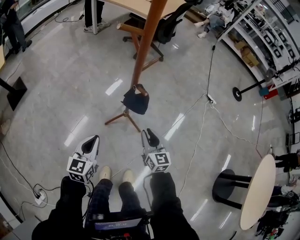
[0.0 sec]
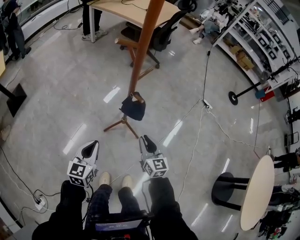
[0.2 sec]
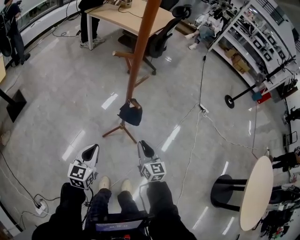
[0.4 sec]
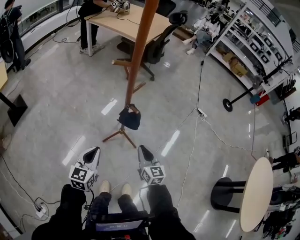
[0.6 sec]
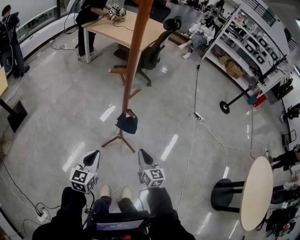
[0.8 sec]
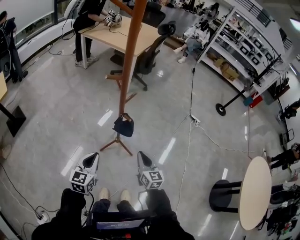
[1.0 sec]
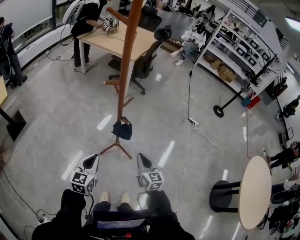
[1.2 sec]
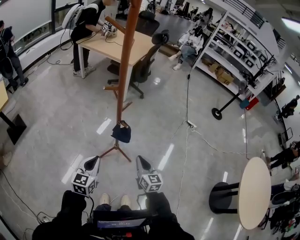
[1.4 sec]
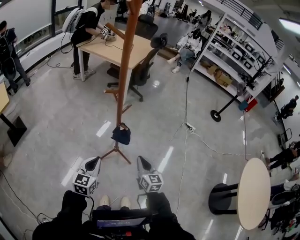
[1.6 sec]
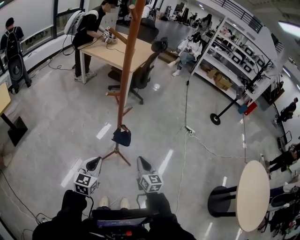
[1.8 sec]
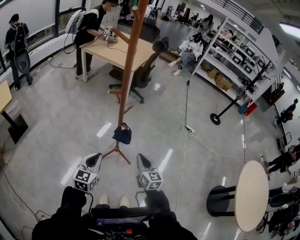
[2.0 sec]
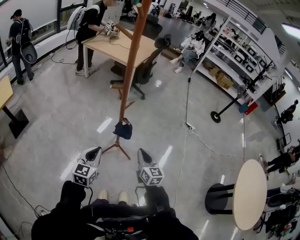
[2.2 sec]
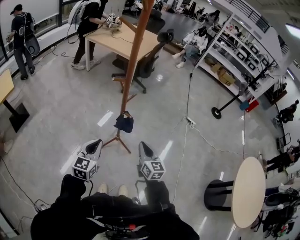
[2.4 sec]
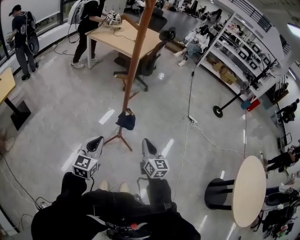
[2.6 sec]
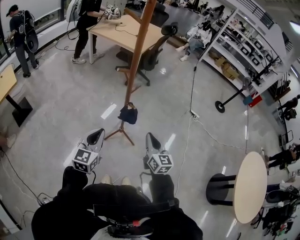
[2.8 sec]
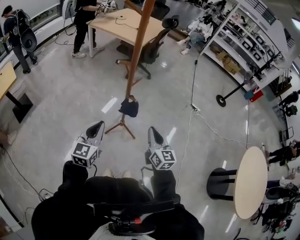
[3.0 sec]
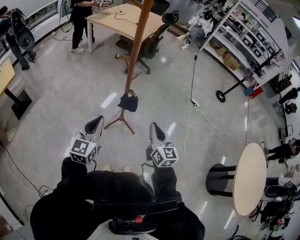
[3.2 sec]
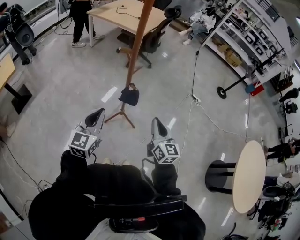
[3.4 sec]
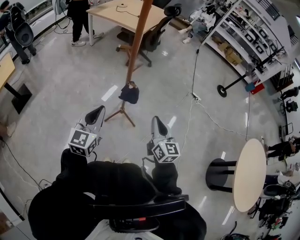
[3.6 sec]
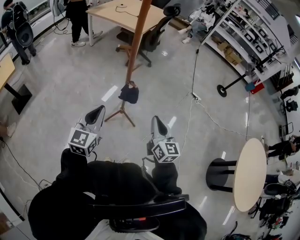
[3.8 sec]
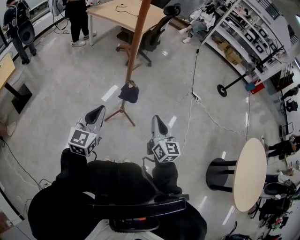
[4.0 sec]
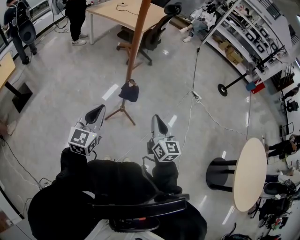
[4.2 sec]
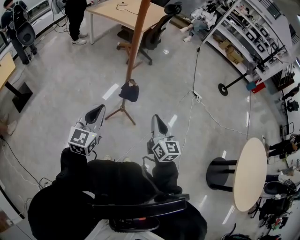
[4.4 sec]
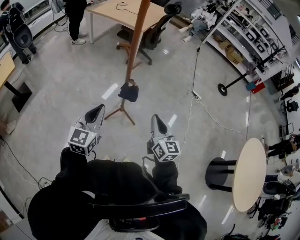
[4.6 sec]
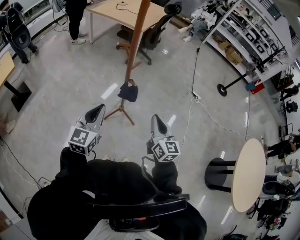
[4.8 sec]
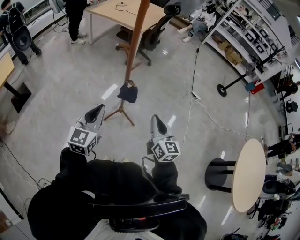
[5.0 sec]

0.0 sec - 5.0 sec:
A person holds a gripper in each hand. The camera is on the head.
0.0 sec - 1.6 sec: The grippers both shift upward by approximately 15 cm. The right gripper closes up.
1.6 sec - 3.4 sec: The left gripper travels upward by roughly 10 cm. The right gripper travels upward and backward by some 15 cm.
3.4 sec - 5.0 sec: The two grippers keep their place.

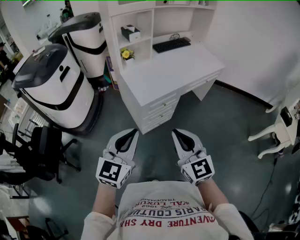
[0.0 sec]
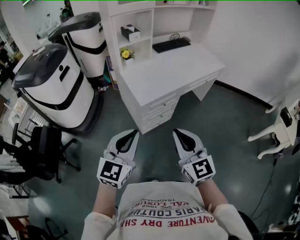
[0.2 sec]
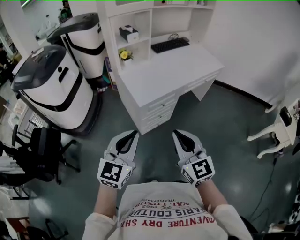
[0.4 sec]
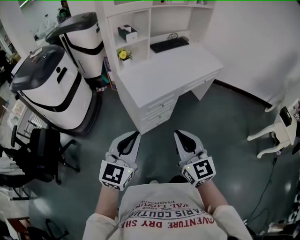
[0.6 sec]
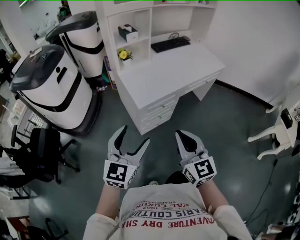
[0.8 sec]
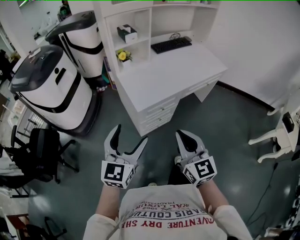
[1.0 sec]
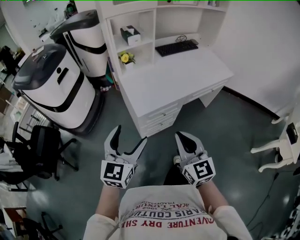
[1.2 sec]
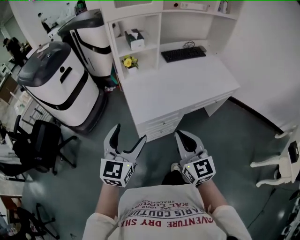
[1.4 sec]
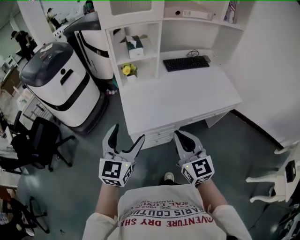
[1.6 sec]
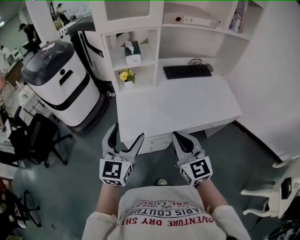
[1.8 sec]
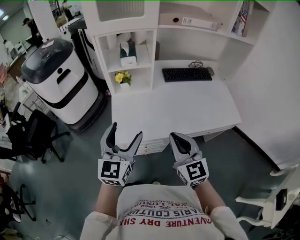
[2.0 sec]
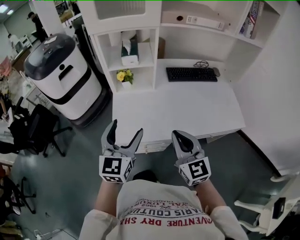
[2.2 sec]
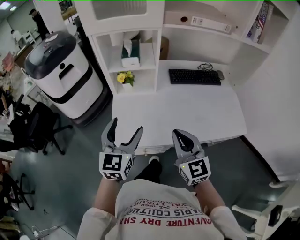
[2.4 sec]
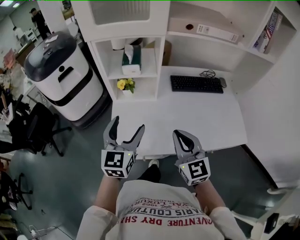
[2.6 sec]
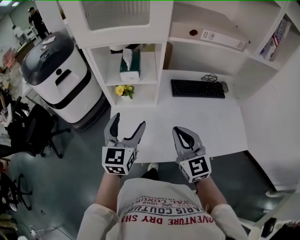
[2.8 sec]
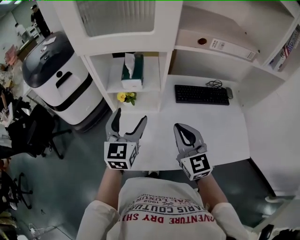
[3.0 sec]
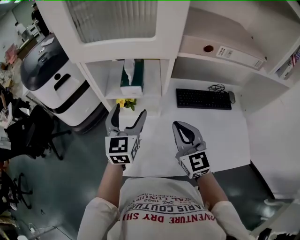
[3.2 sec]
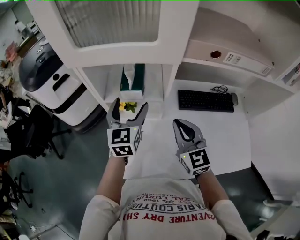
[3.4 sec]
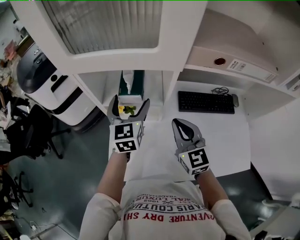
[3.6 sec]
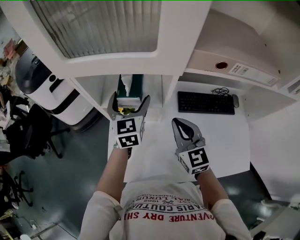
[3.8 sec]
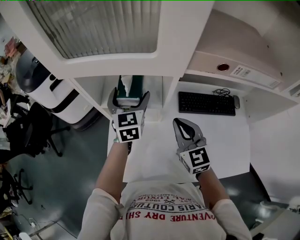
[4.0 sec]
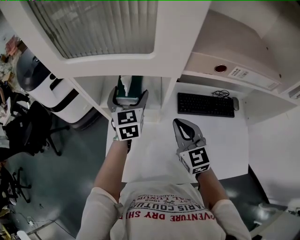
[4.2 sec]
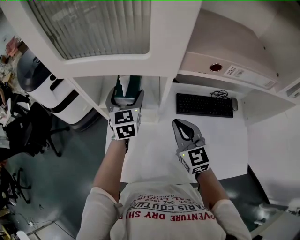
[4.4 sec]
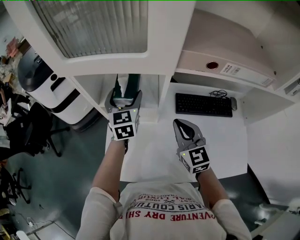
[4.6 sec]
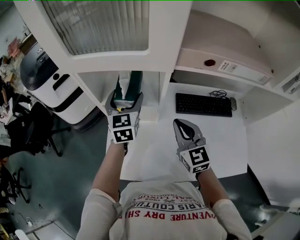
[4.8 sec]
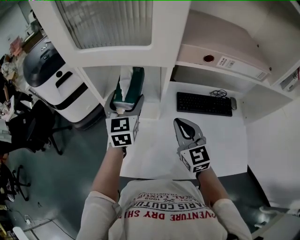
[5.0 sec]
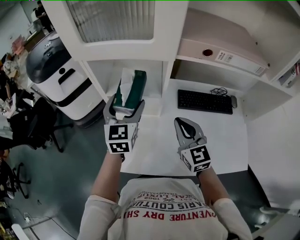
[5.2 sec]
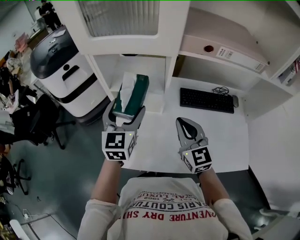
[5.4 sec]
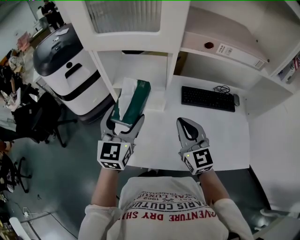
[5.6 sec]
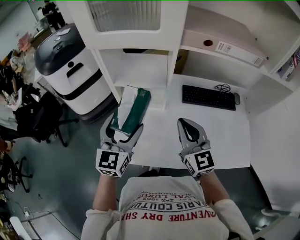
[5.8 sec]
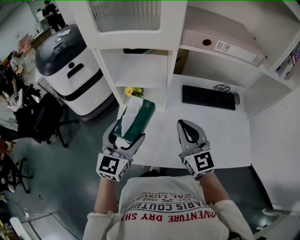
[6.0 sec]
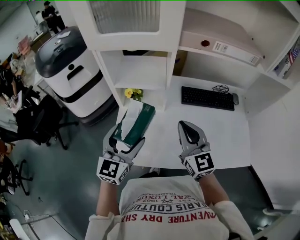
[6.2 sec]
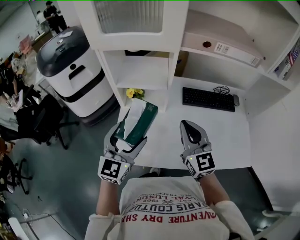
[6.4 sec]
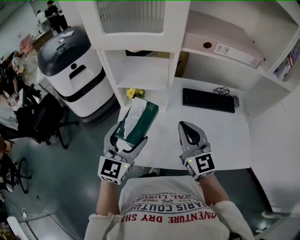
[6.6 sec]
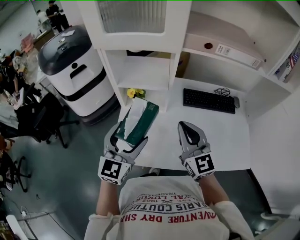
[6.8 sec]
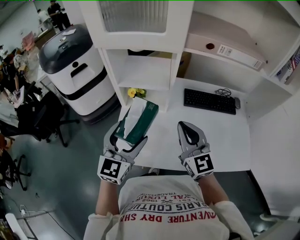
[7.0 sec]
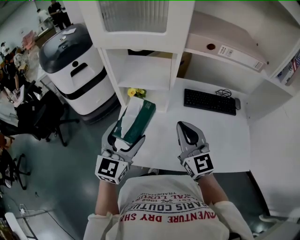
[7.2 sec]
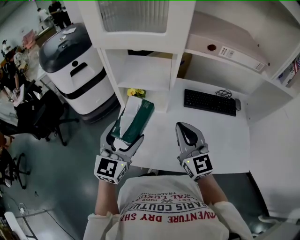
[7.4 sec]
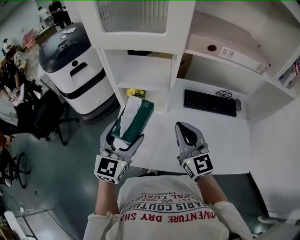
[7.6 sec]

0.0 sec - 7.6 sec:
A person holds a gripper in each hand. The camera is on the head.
0.0 sec - 1.6 sec: Both grippers move forward and to the right, approximately 25 cm. The left gripper rotates some 20 degrees, and opens its fingers.
1.6 sec - 3.0 sec: The left gripper moves forward and to the right, roughly 35 cm, while the right gripper is displaced forward by roughly 30 cm.
3.0 sec - 4.6 sec: The left gripper heads forward, covering about 20 cm, while the right gripper shifts some 10 cm forward.
4.6 sec - 6.0 sec: The left gripper goes some 25 cm backward, and turns by some 20 degrees. The right gripper moves backward, approximately 10 cm.
6.0 sec - 7.6 sec: The grippers move only a little.

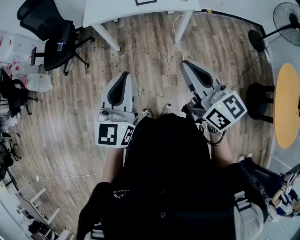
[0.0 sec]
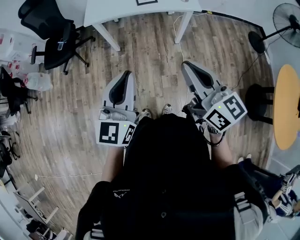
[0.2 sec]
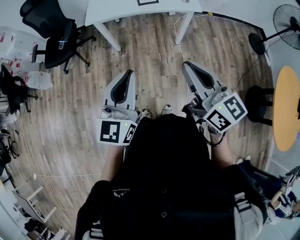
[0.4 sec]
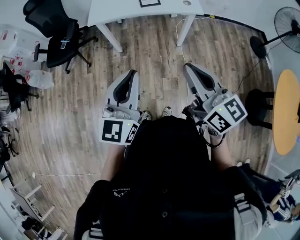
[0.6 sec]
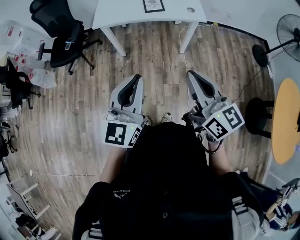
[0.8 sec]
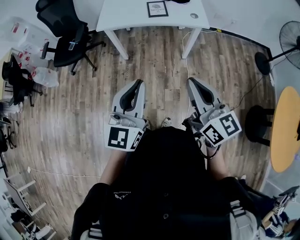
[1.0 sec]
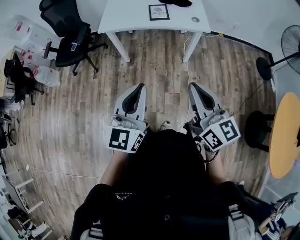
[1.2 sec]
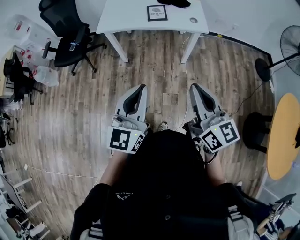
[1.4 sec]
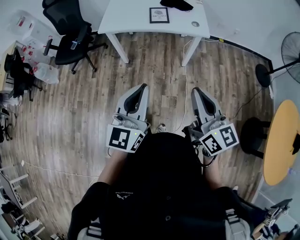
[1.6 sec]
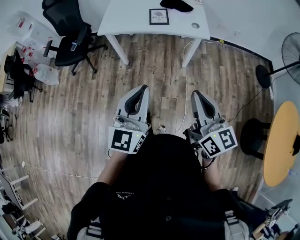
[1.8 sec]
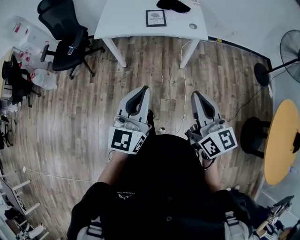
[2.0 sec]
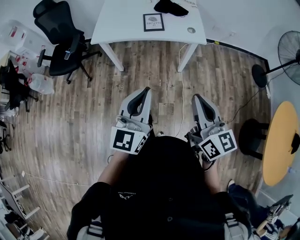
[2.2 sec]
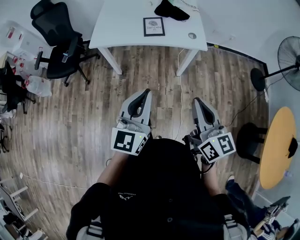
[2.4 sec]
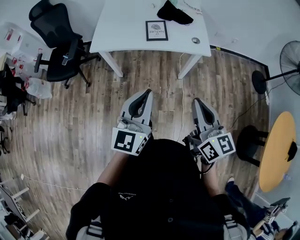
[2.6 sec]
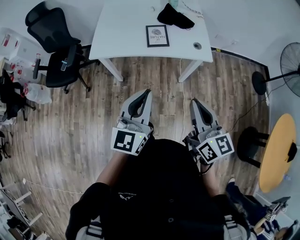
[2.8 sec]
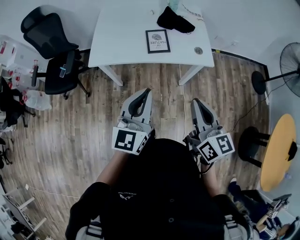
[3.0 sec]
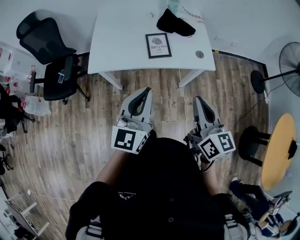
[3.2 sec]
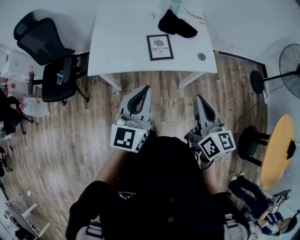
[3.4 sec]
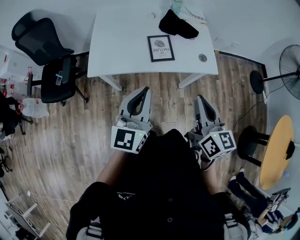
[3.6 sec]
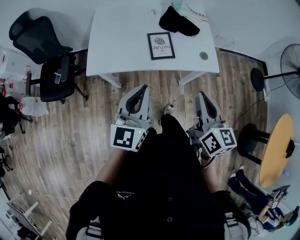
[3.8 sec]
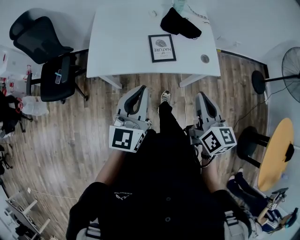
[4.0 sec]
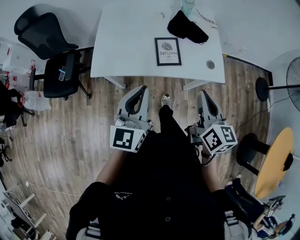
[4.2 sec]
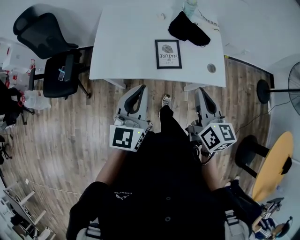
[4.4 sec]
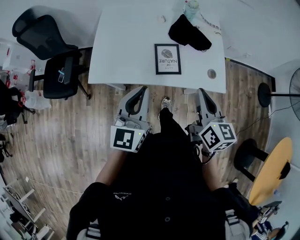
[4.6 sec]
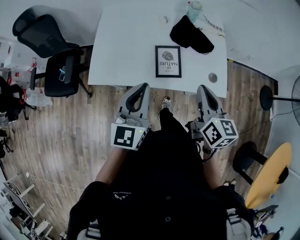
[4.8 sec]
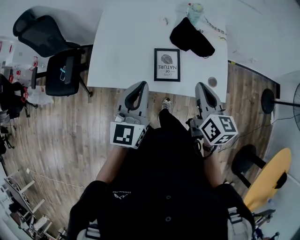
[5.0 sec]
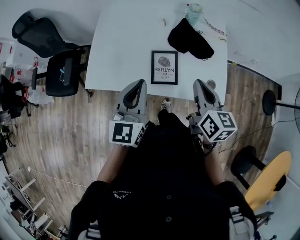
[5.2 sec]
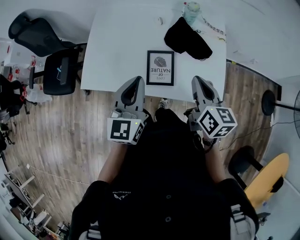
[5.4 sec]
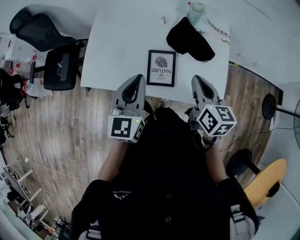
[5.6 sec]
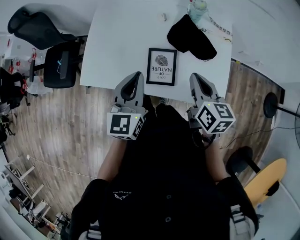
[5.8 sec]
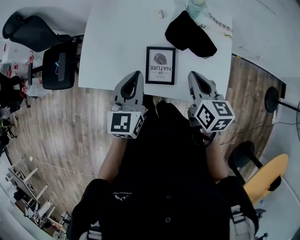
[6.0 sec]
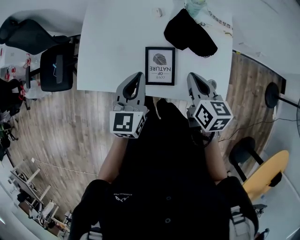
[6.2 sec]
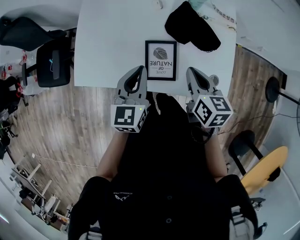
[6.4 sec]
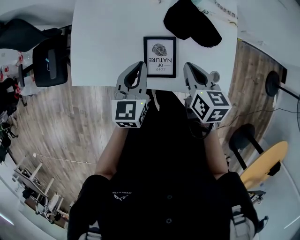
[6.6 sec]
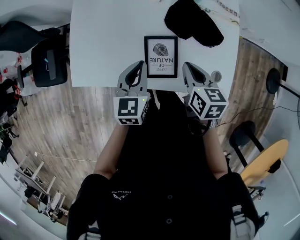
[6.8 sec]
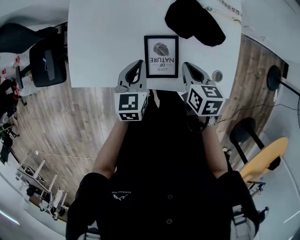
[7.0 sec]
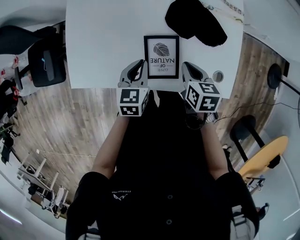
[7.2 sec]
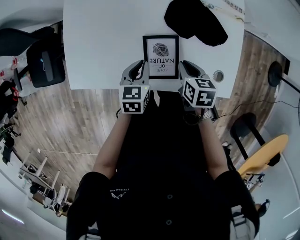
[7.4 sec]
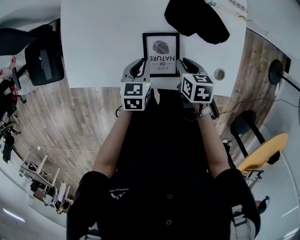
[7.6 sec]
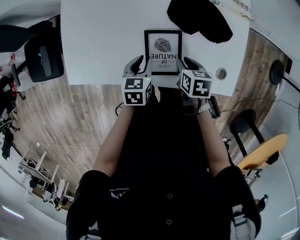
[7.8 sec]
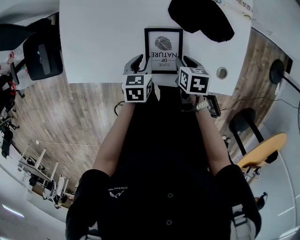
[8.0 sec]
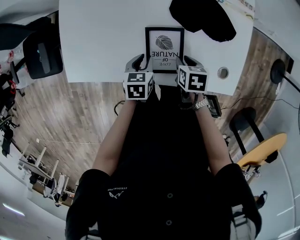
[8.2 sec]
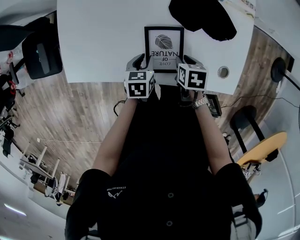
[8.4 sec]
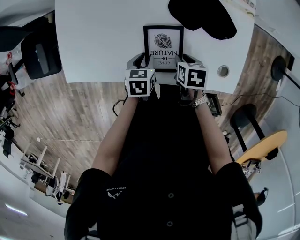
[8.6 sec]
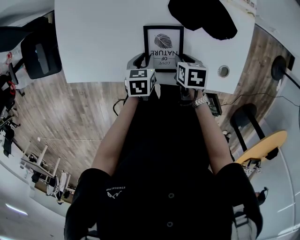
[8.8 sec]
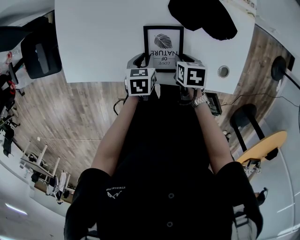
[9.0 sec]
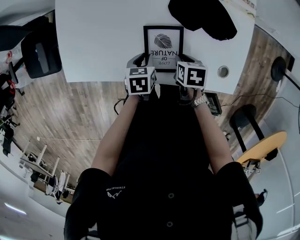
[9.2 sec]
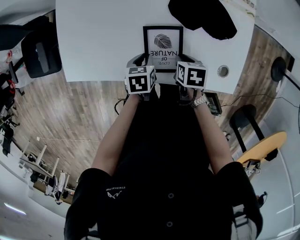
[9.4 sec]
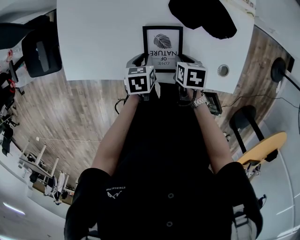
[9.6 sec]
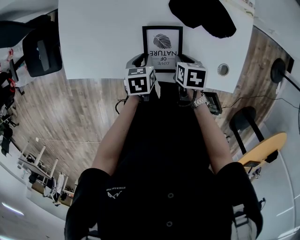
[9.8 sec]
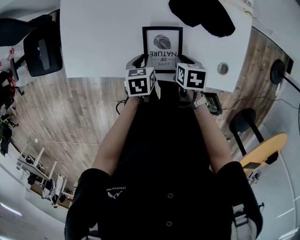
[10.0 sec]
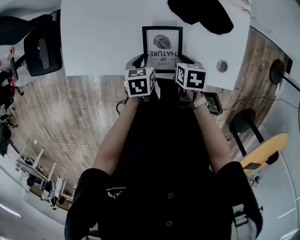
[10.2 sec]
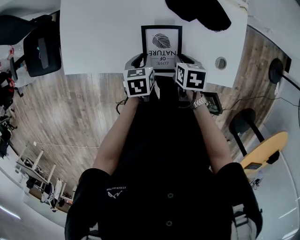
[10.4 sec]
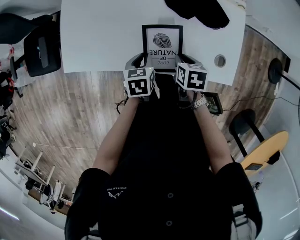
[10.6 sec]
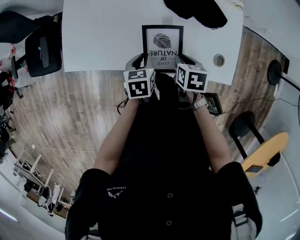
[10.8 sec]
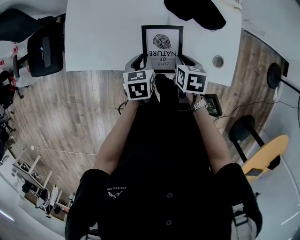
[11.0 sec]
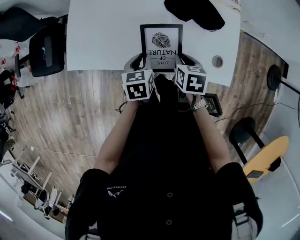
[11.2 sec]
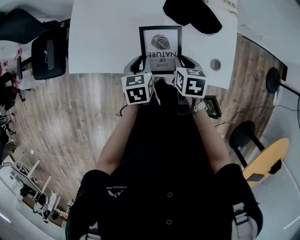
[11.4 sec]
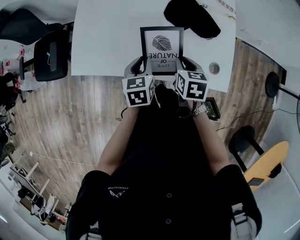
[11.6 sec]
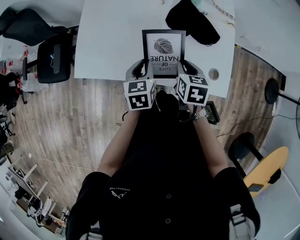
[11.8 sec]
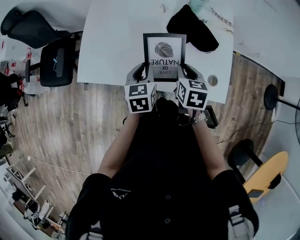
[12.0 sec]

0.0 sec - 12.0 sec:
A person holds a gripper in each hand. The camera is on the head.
0.0 sec - 1.6 sec: Both grippers travel together to the right, some 10 cm.
1.6 sec - 3.0 sec: The grippers both shift forward by approximately 30 cm.
3.0 sec - 4.4 sec: The grippers both shift forward by some 20 cm.
4.4 sec - 6.0 sec: The left gripper goes about 20 cm forward, while the right gripper heads forward and downward, covering about 25 cm.
6.0 sec - 7.6 sec: Both grippers travel together downward, approximately 20 cm. The left gripper points its fingers approximately 30 degrees further downward. The right gripper tips its fingers downward by approximately 30 degrees.
7.6 sec - 9.0 sec: Both grippers travel together downward, about 5 cm.
9.0 sec - 10.4 sec: The left gripper moves approximately 5 cm. The right gripper shifts by some 5 cm.
10.4 sec - 12.0 sec: The two grippers go about 15 cm upward. The right gripper changes its angle by about 20 degrees. Meanwhile the left gripper rotates approximately 20 degrees.
